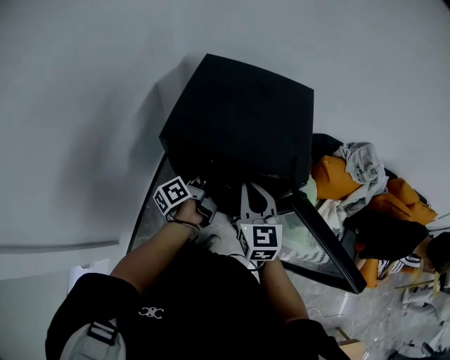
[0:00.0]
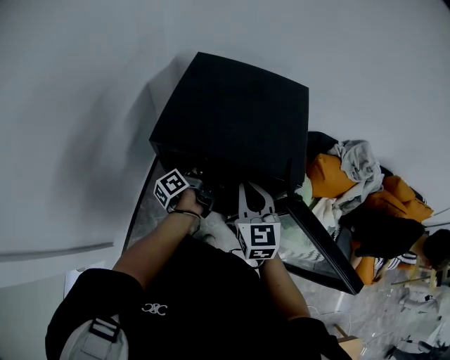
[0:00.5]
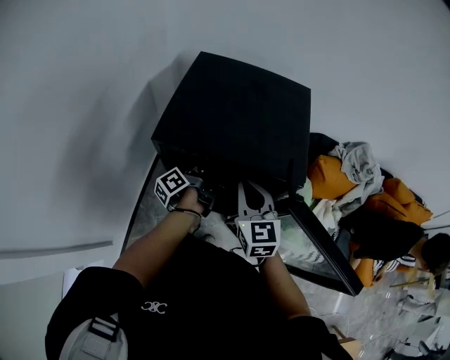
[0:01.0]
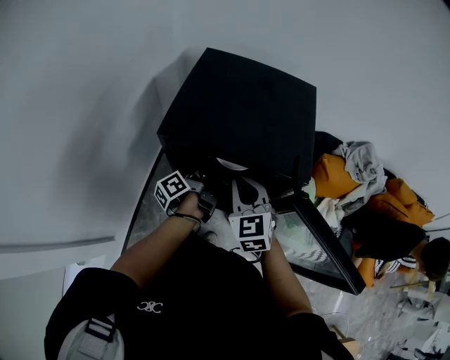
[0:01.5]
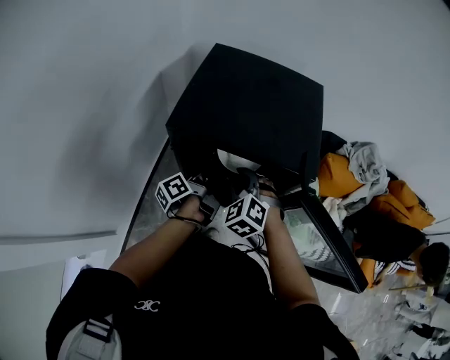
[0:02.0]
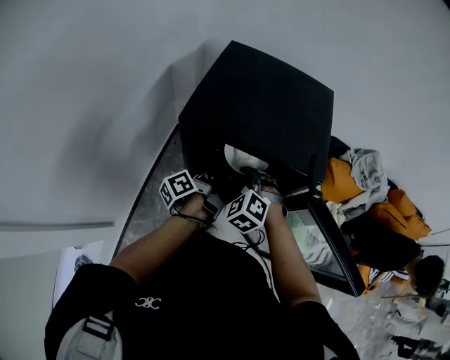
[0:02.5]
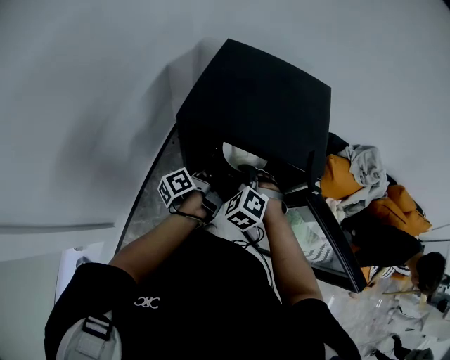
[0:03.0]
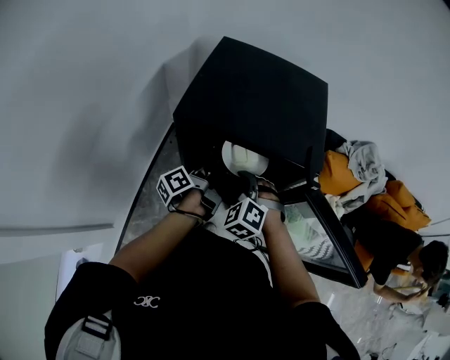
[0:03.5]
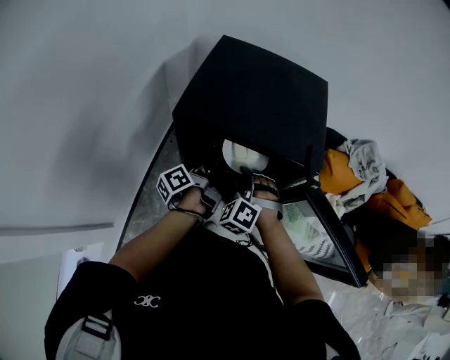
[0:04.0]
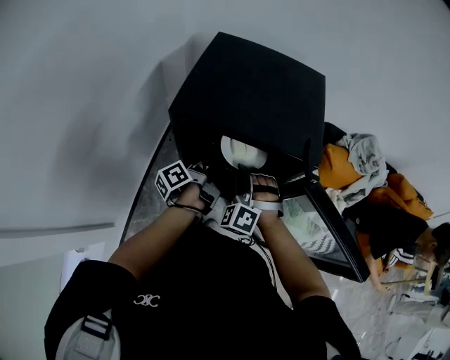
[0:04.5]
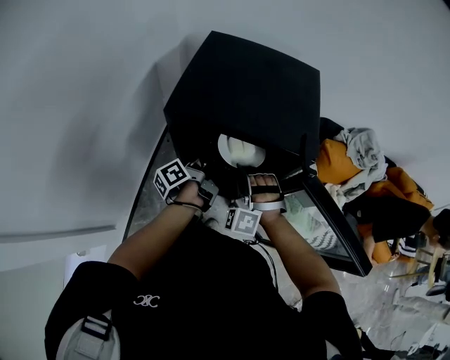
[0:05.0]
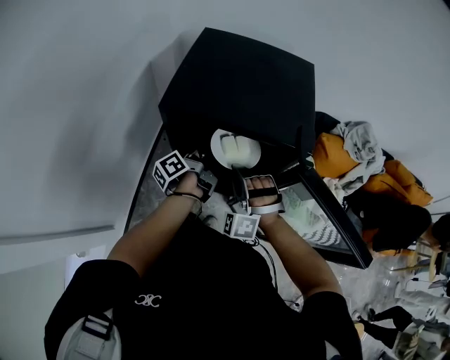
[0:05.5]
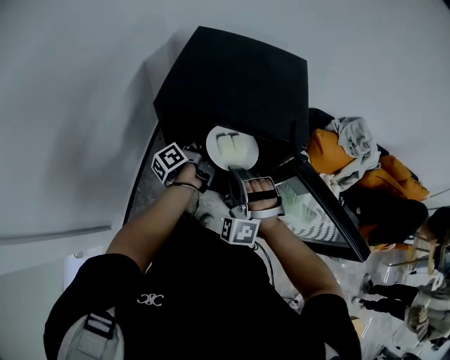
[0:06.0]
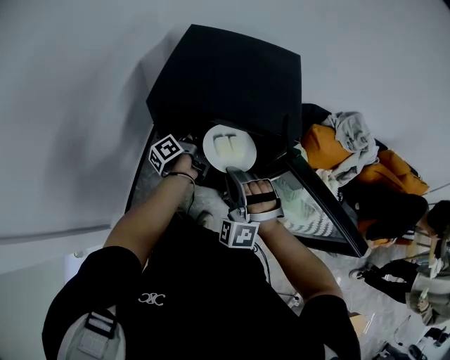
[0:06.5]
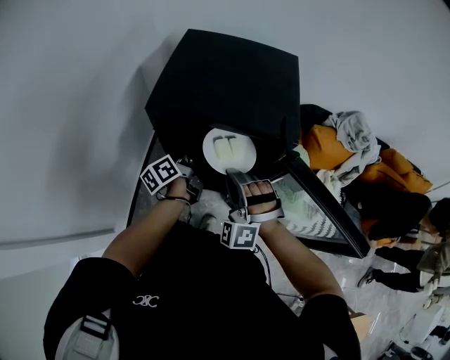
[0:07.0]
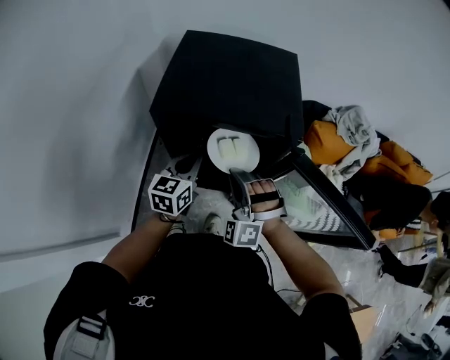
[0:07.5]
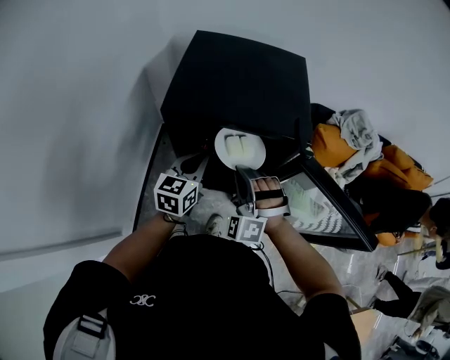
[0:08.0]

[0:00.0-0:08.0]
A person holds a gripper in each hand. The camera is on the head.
0:00.0 to 0:02.0: The right gripper moves downward, roughly 10 cm, twists approximately 40 degrees counterclockwise, seen from behind, and opens its fingers.
0:02.0 to 0:04.0: The right gripper changes its angle by some 20 degrees.
0:04.0 to 0:06.0: The right gripper is displaced upward and backward by approximately 10 cm, and turns by approximately 20 degrees.
0:06.0 to 0:08.0: The left gripper shifts some 10 cm backward and upward, and twists some 70 degrees clockwise, seen from behind.

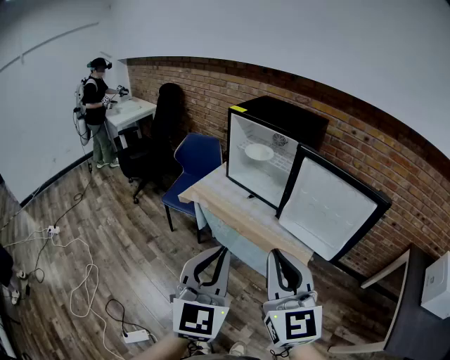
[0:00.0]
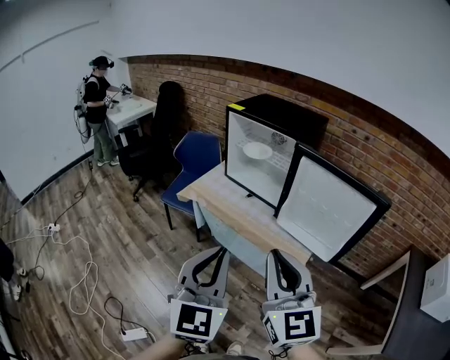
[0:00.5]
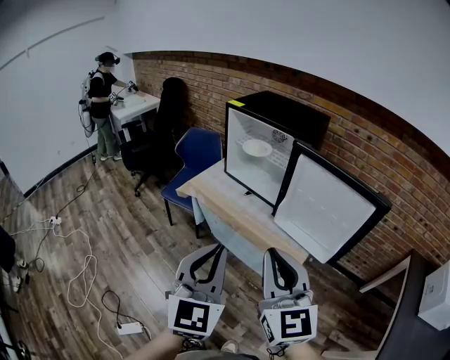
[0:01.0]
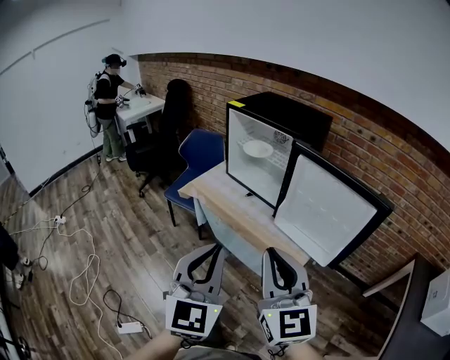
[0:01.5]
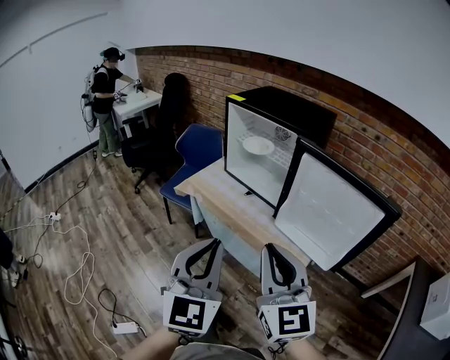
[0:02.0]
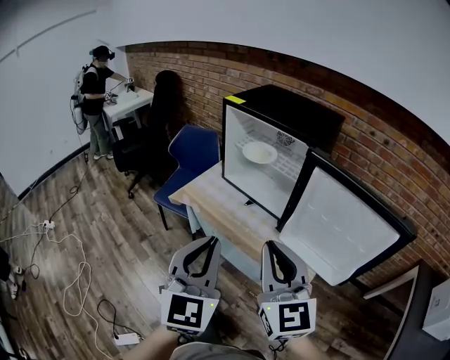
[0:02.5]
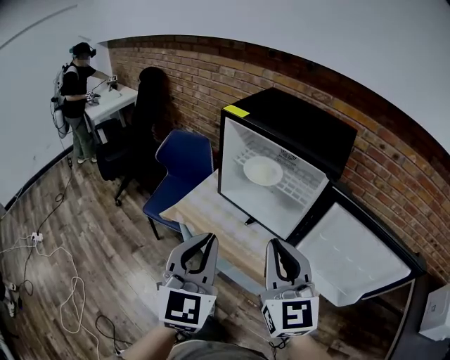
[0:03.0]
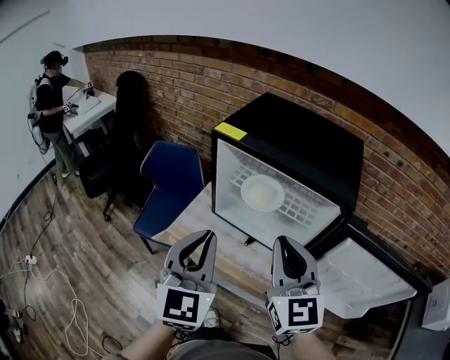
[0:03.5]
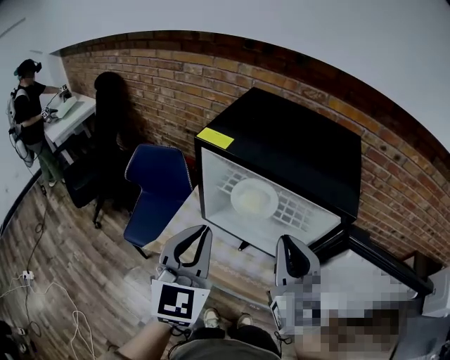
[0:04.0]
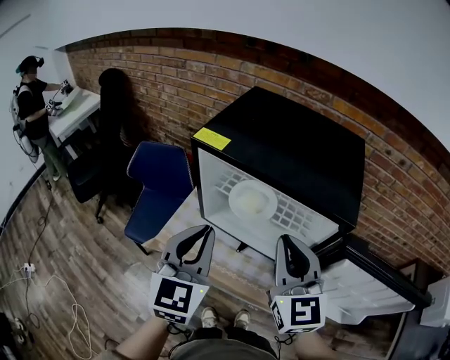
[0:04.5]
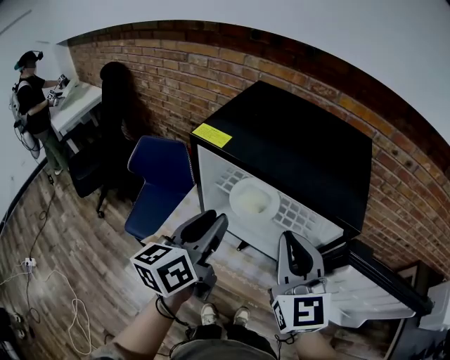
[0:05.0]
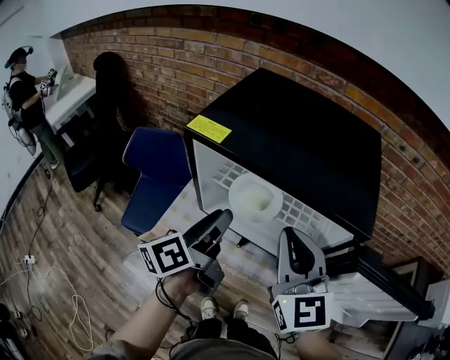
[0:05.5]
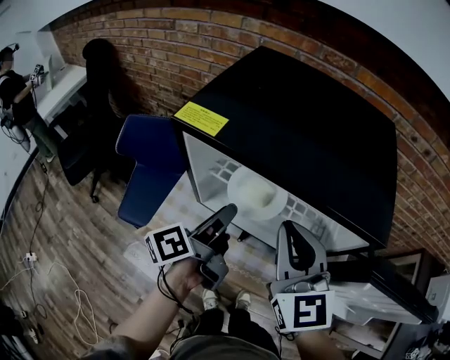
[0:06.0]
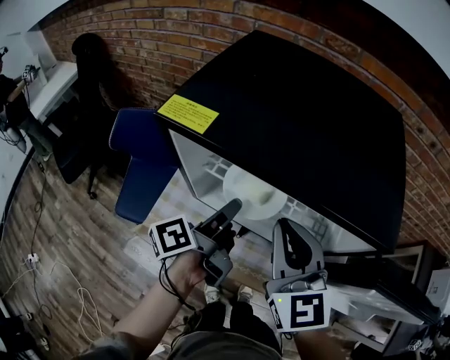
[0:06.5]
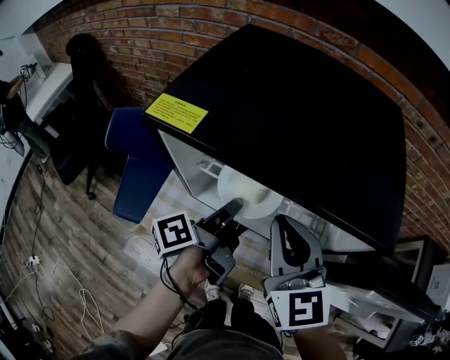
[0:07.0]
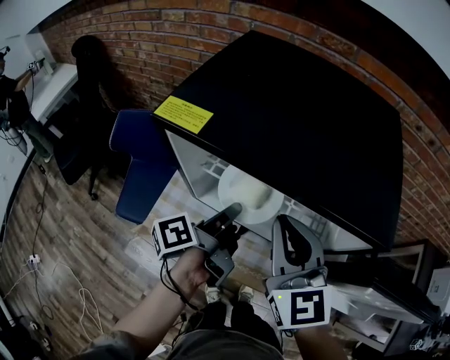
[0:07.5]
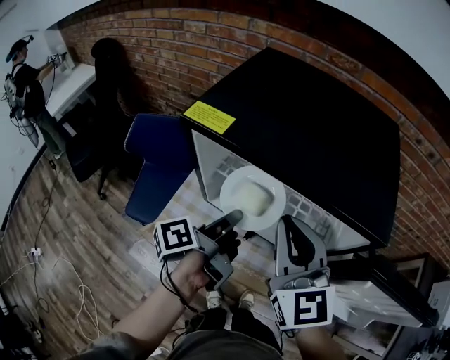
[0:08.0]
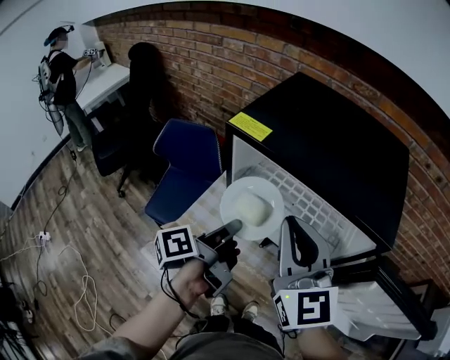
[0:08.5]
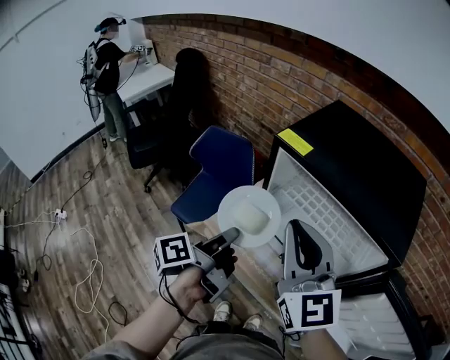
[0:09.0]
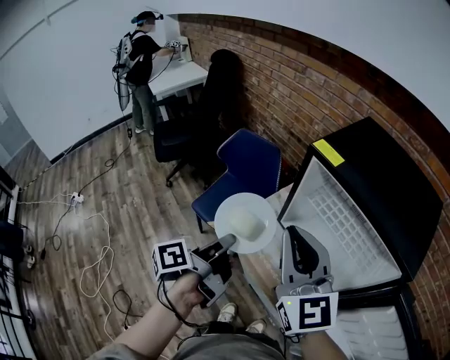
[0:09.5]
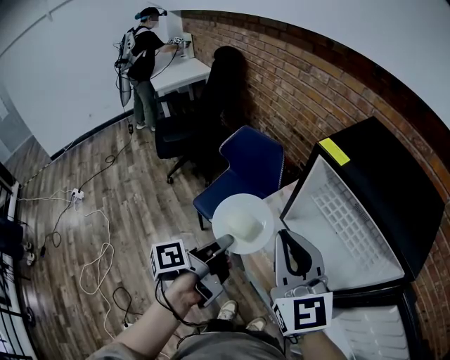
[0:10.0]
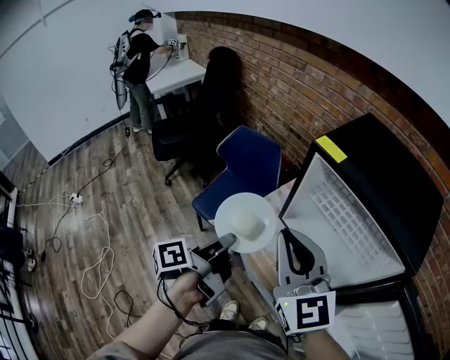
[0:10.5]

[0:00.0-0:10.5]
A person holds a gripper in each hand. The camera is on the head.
0:00.0 to 0:02.0: Both grippers move forward, about 5 cm.
0:02.0 to 0:04.0: Both grippers move forward, about 40 cm. The right gripper swivels roughly 20 degrees.
0:04.0 to 0:06.5: The left gripper travels downward and forward by approximately 20 cm, rolls counterclockwise, seen from behind, by roughly 90 degrees, and opens up, while the right gripper travels forward and downward by about 10 cm.
0:06.5 to 0:08.5: The left gripper is displaced backward and to the left by roughly 10 cm, and closes up. Meanwhile the right gripper shifts roughly 5 cm upward.
0:08.5 to 0:10.5: The right gripper goes about 15 cm to the left, and changes its angle by approximately 20 degrees. The left gripper is displaced to the left and backward by some 20 cm.

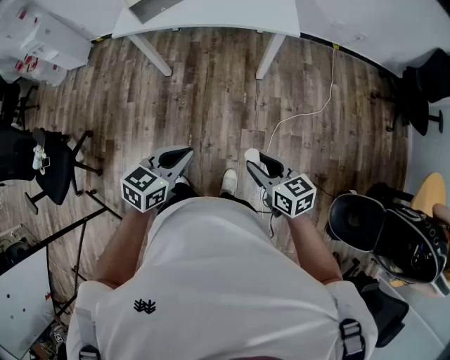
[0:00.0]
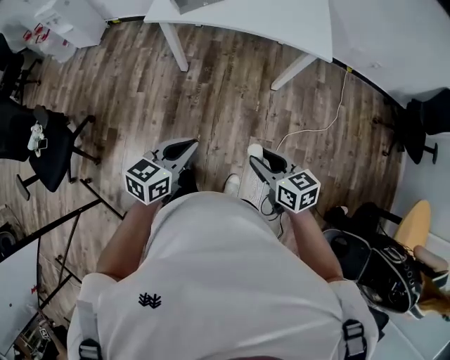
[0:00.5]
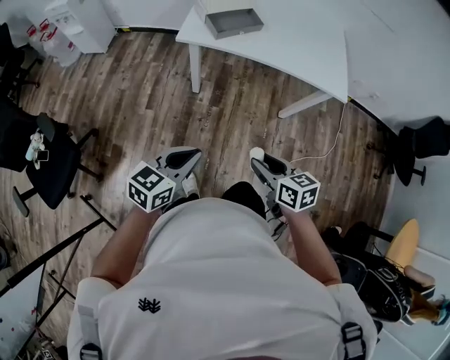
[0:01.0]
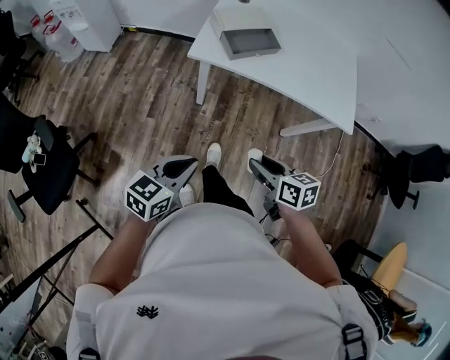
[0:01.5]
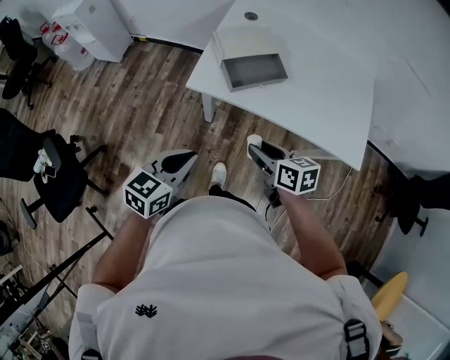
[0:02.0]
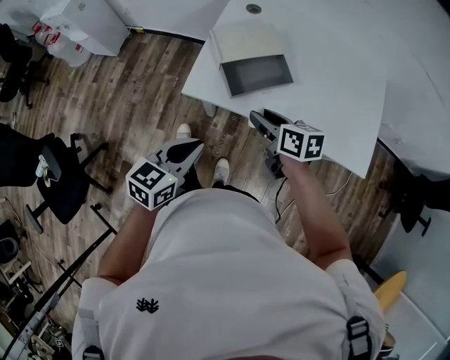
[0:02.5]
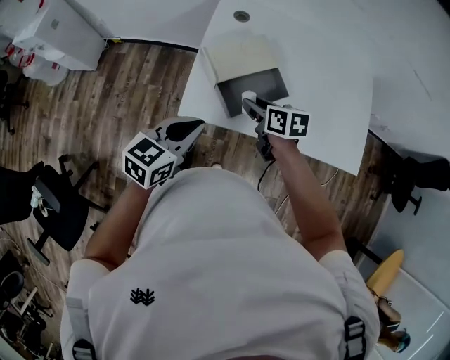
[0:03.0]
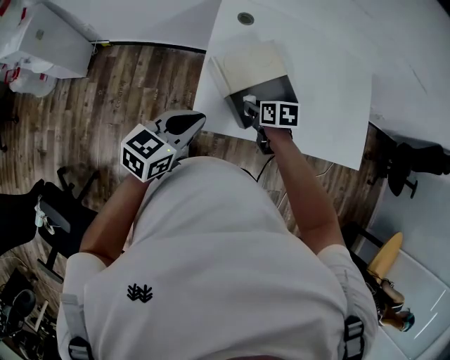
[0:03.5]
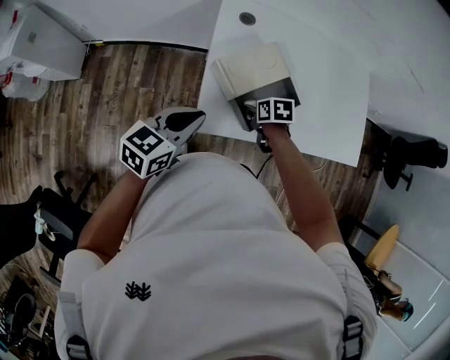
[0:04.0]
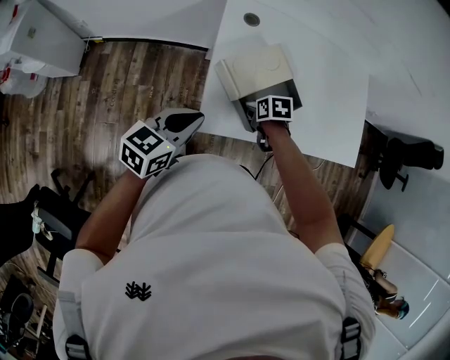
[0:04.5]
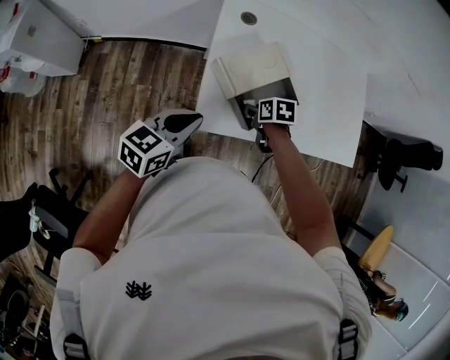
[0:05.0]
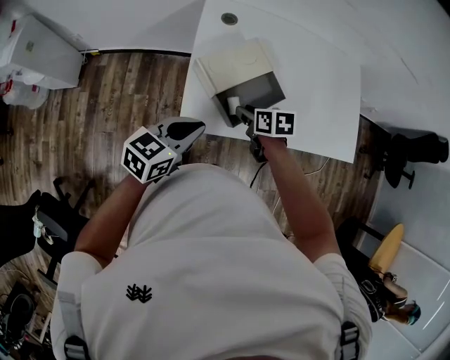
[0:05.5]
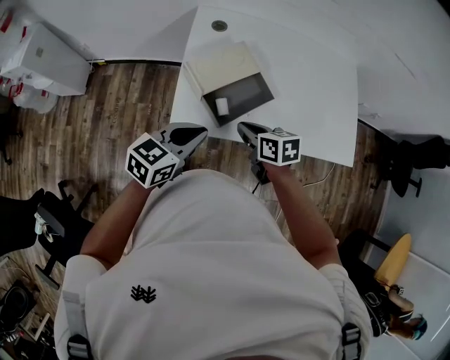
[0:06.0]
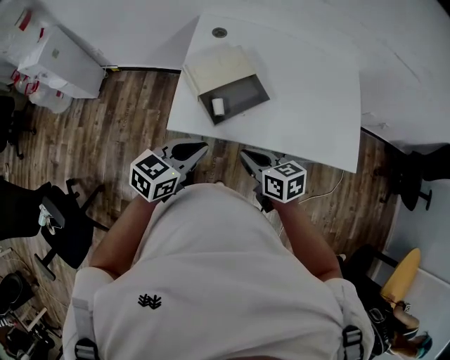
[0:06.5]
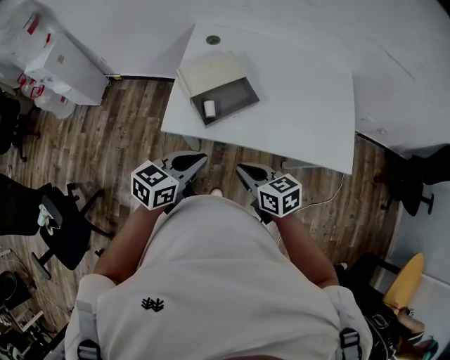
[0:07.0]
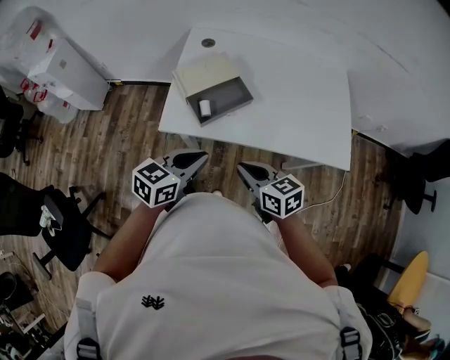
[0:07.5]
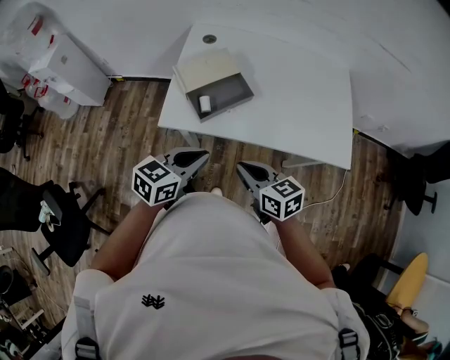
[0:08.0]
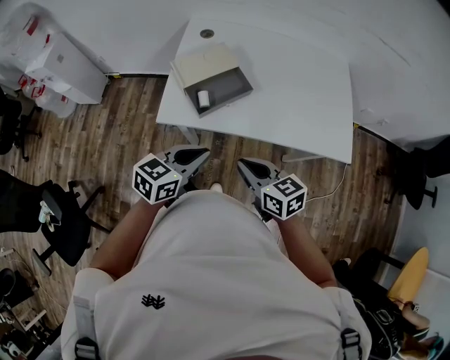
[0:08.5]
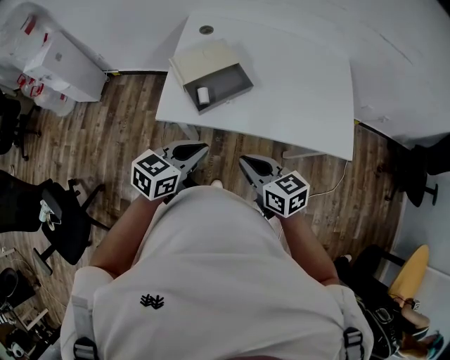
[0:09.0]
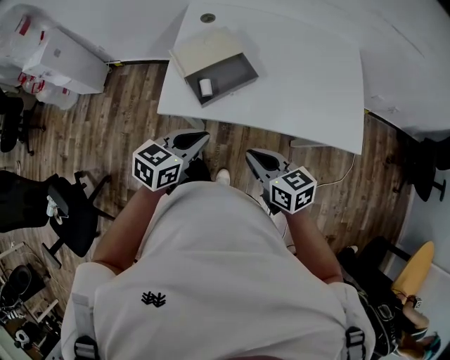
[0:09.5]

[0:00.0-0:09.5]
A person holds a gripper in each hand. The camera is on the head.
0:00.0 to 0:02.0: The two grippers travel together, forward and to the left, about 50 cm.
0:02.0 to 0:04.0: The left gripper goes some 25 cm forward, and swivels about 20 degrees. The right gripper goes roughly 30 cm forward and downward, and tips its fingers downward by roughly 30 degrees.
0:04.0 to 0:05.5: The left gripper goes roughly 5 cm to the right. Meanwhile the right gripper heads upward, covering roughly 5 cm.
0:05.5 to 0:07.5: The left gripper travels to the right and backward by roughly 15 cm, while the right gripper heads backward, upward and to the right, covering roughly 25 cm, swivels some 30 degrees, and closes.
0:07.5 to 0:09.5: The grippers stay close to where they were, moving slightly.
